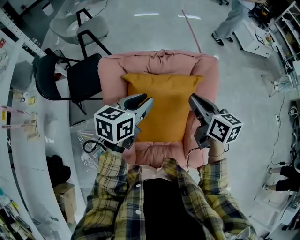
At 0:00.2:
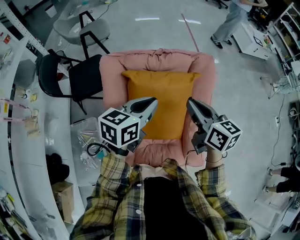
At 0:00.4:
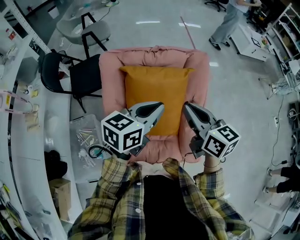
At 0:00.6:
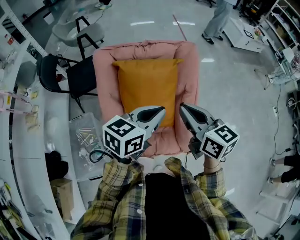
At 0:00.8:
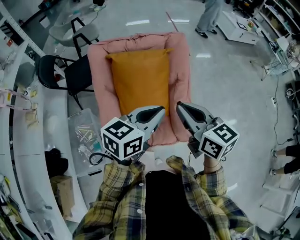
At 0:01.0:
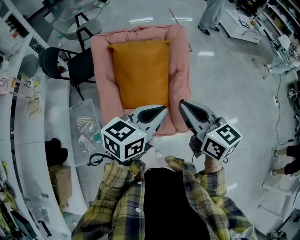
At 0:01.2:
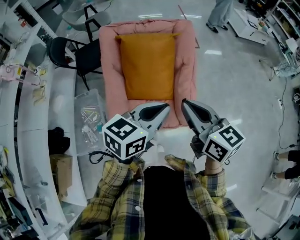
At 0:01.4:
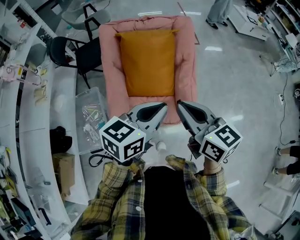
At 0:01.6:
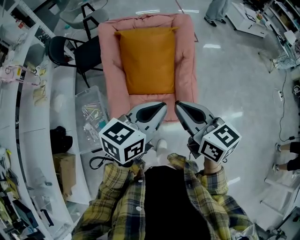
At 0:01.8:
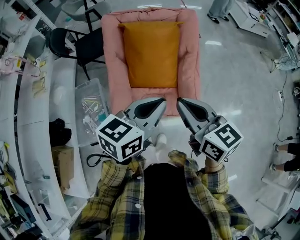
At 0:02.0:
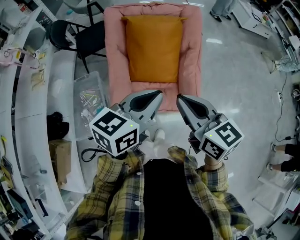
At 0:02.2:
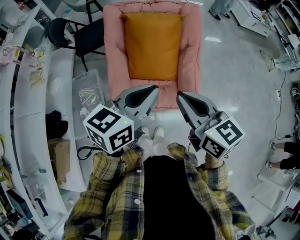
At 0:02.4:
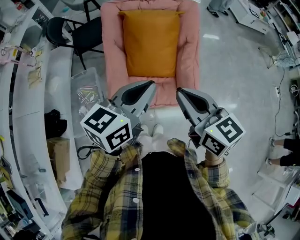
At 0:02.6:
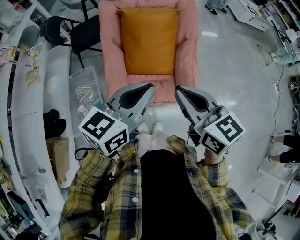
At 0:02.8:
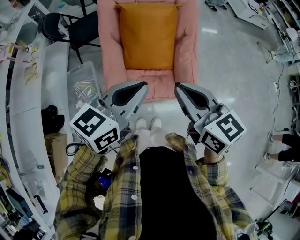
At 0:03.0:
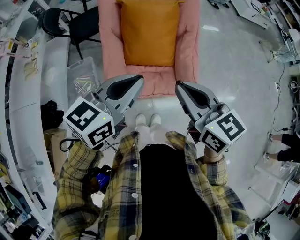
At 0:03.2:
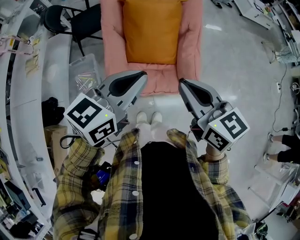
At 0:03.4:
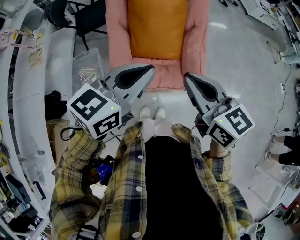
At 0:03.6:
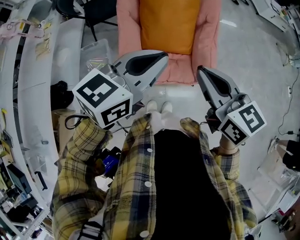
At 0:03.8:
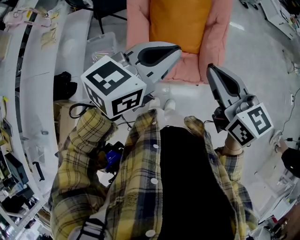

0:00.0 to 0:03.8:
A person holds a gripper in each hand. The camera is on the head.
0:00.0 to 0:01.2: The left gripper moves backward and to the right, some 40 cm, and closes, while the right gripper is displaced backward by roughly 35 cm.
0:01.2 to 0:02.6: The right gripper goes roughly 10 cm backward and to the left; the left gripper is displaced to the left and backward by approximately 10 cm.
0:02.6 to 0:03.8: The grippers move only a little.

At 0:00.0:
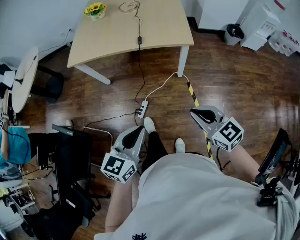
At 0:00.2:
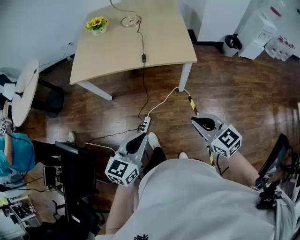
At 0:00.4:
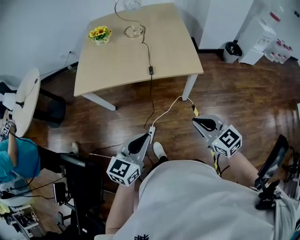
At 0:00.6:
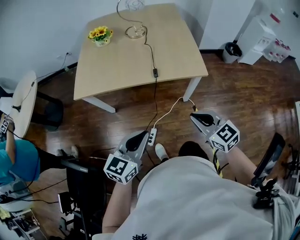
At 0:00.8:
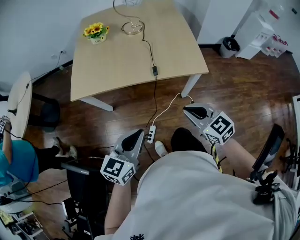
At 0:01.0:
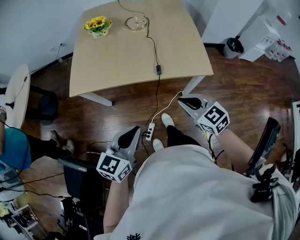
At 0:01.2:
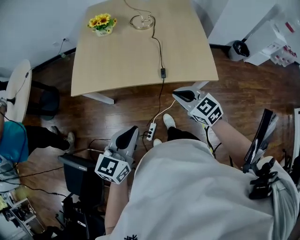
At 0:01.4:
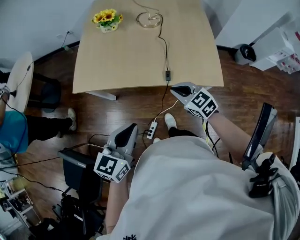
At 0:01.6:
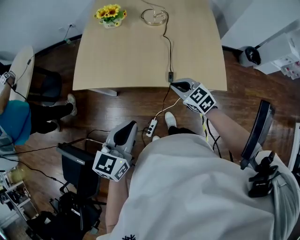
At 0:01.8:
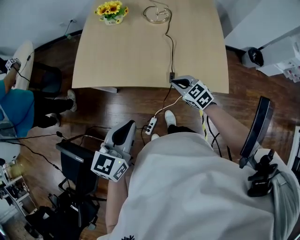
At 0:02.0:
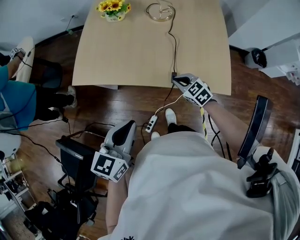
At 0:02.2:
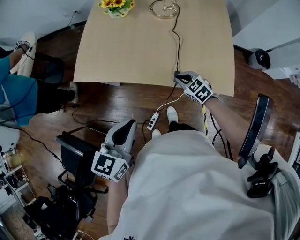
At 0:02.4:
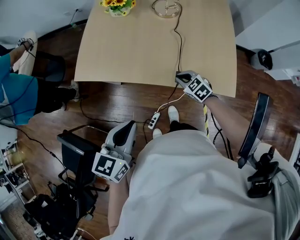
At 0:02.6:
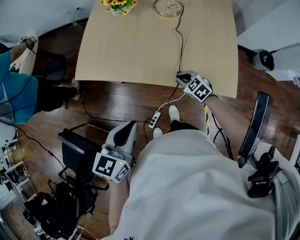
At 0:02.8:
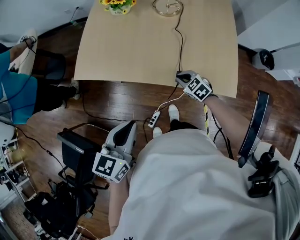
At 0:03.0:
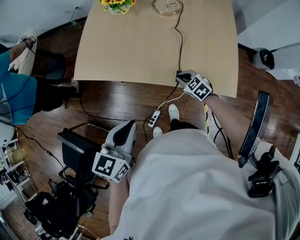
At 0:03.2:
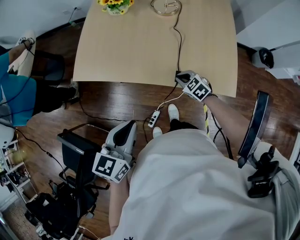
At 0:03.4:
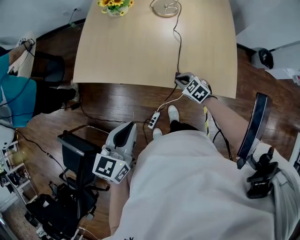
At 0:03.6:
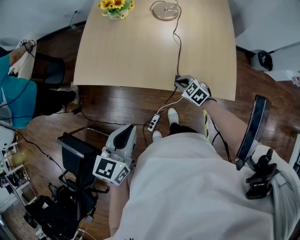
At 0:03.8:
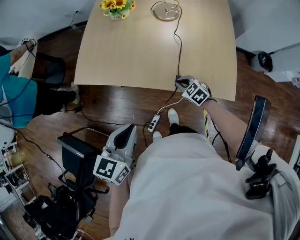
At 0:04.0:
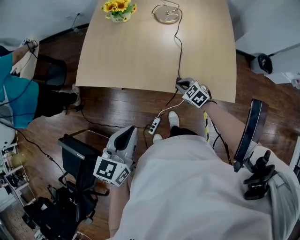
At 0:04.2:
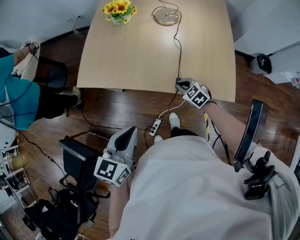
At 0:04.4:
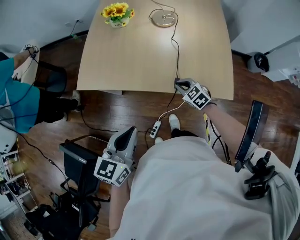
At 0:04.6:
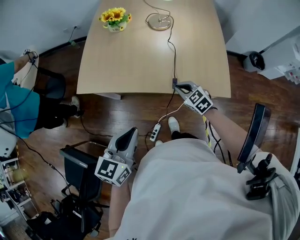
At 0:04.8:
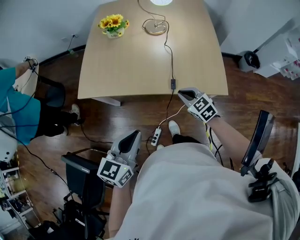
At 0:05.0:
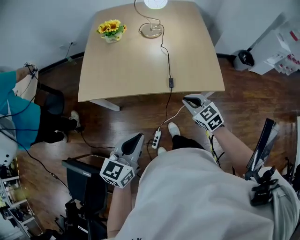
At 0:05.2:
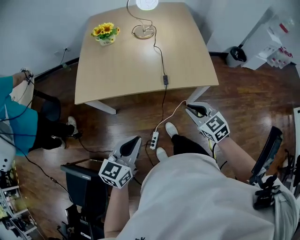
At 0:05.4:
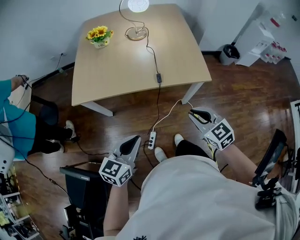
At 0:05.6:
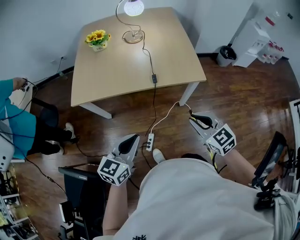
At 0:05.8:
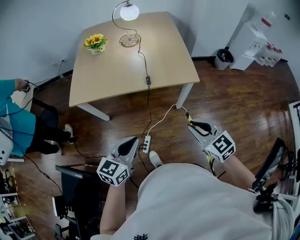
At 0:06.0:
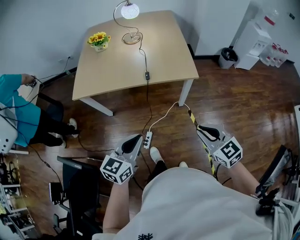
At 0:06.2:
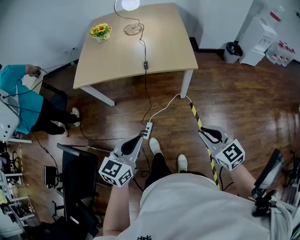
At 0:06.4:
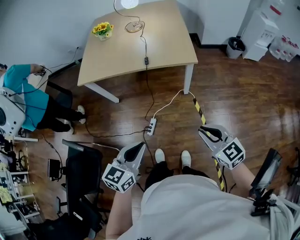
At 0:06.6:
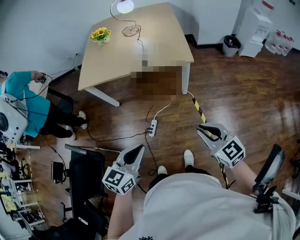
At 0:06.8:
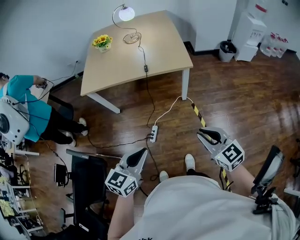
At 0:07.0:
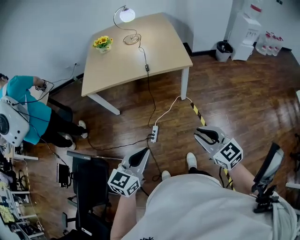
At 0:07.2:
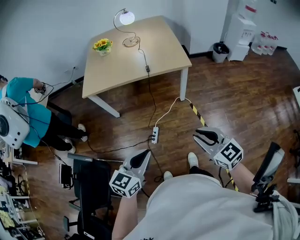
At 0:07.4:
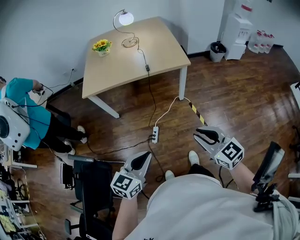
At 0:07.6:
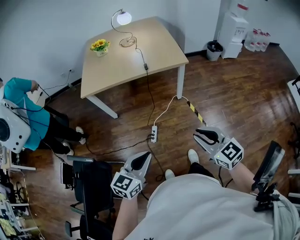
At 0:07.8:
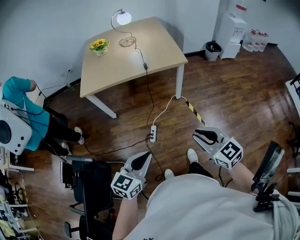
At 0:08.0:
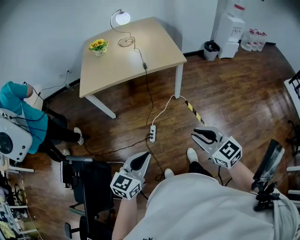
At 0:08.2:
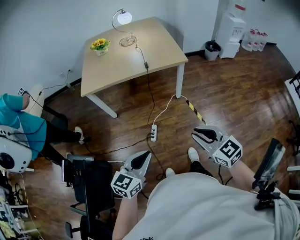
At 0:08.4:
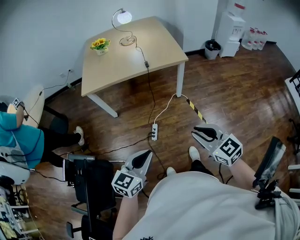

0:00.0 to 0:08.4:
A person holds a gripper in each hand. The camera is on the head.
0:00.0 to 0:01.4: The two grippers go roughly 40 cm forward and to the left.
0:01.4 to 0:02.8: The right gripper moves downward and forward, roughly 15 cm.
0:02.8 to 0:04.2: The grippers make only small movements.
0:04.2 to 0:05.6: The left gripper travels backward by approximately 15 cm, and swivels roughly 20 degrees. The right gripper is displaced backward and upward by approximately 40 cm, and rotates some 30 degrees.
0:05.6 to 0:07.0: Both grippers travel together backward, approximately 25 cm.
0:07.0 to 0:08.4: The grippers both shift backward and to the left by some 10 cm.

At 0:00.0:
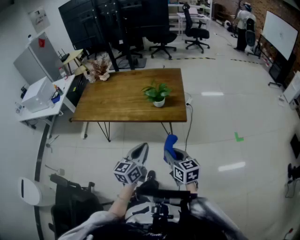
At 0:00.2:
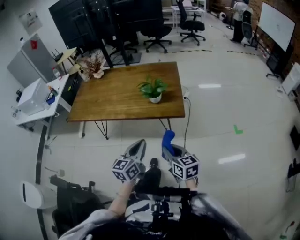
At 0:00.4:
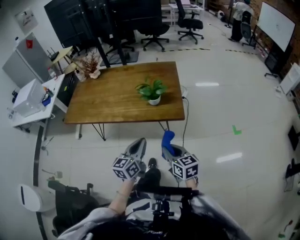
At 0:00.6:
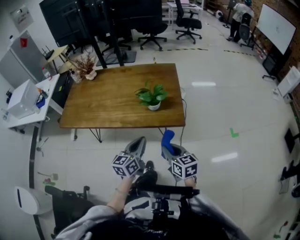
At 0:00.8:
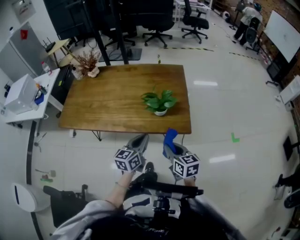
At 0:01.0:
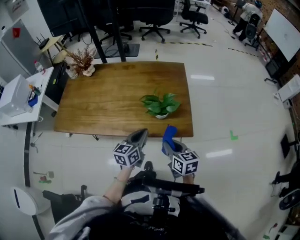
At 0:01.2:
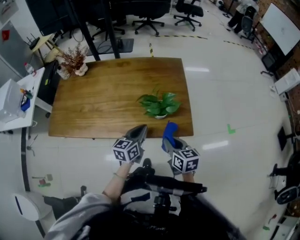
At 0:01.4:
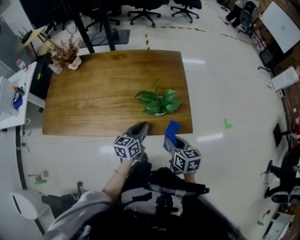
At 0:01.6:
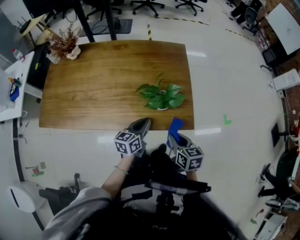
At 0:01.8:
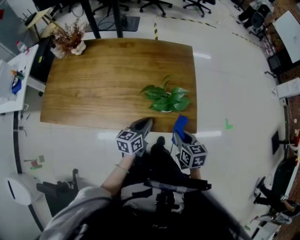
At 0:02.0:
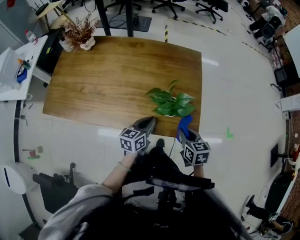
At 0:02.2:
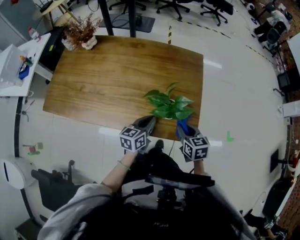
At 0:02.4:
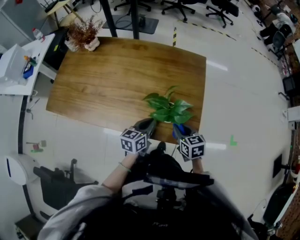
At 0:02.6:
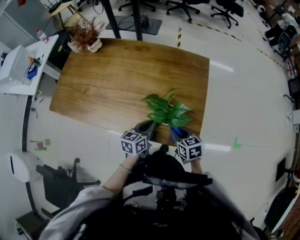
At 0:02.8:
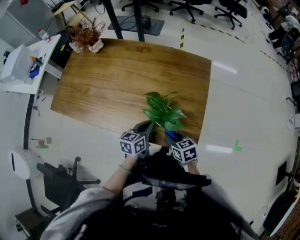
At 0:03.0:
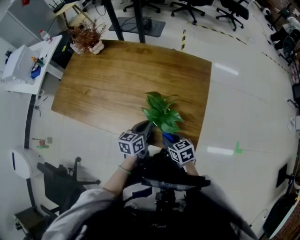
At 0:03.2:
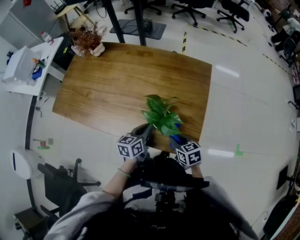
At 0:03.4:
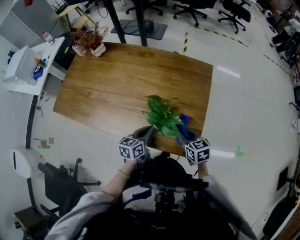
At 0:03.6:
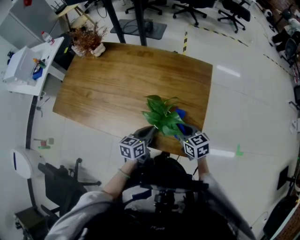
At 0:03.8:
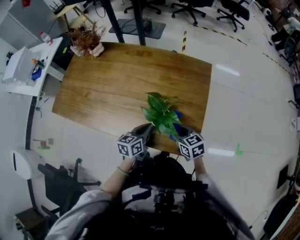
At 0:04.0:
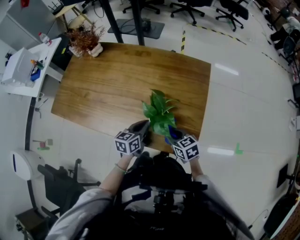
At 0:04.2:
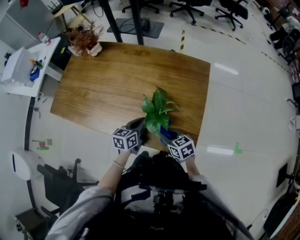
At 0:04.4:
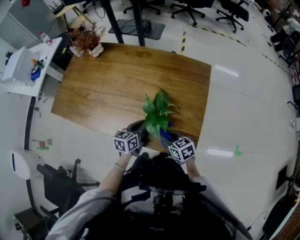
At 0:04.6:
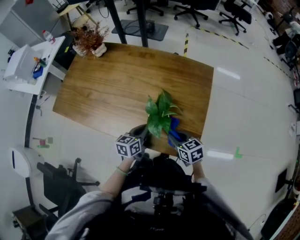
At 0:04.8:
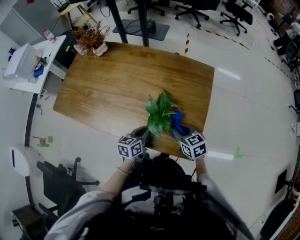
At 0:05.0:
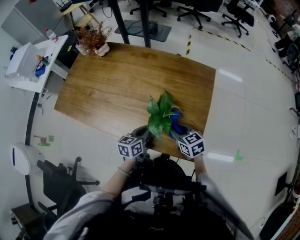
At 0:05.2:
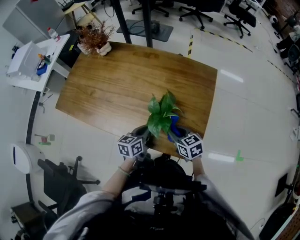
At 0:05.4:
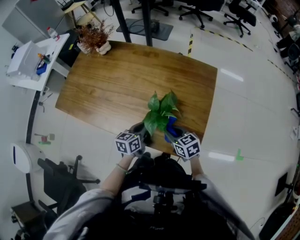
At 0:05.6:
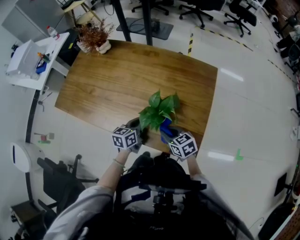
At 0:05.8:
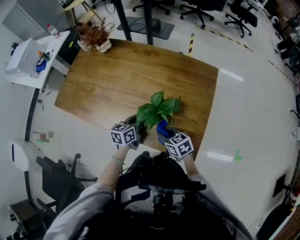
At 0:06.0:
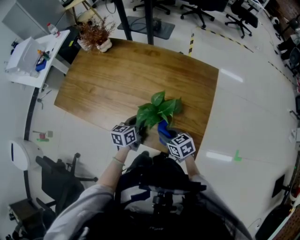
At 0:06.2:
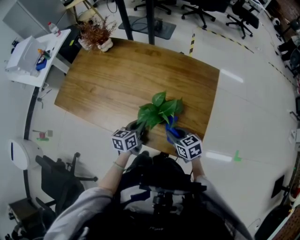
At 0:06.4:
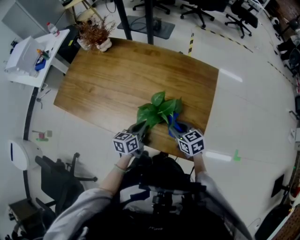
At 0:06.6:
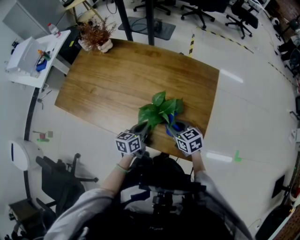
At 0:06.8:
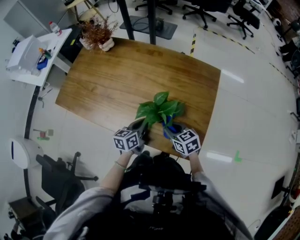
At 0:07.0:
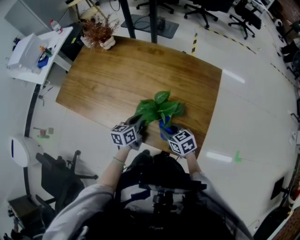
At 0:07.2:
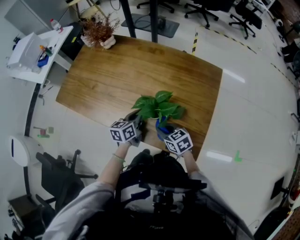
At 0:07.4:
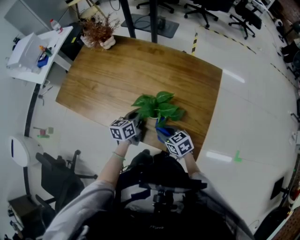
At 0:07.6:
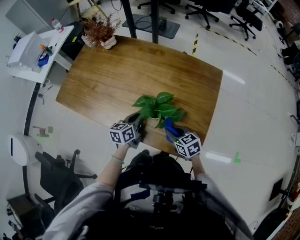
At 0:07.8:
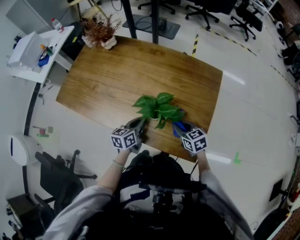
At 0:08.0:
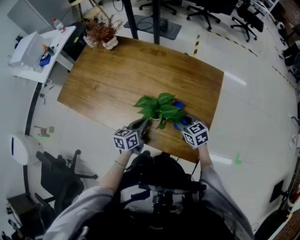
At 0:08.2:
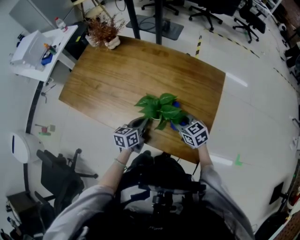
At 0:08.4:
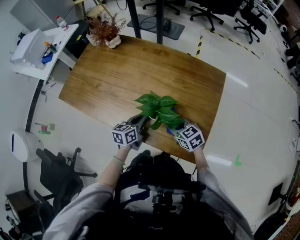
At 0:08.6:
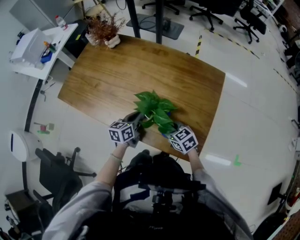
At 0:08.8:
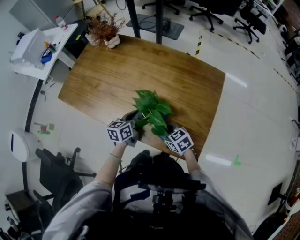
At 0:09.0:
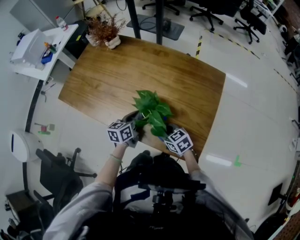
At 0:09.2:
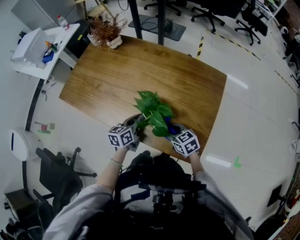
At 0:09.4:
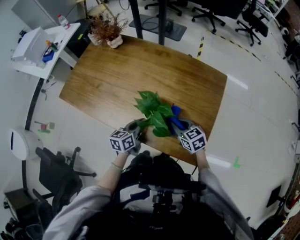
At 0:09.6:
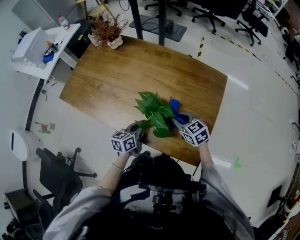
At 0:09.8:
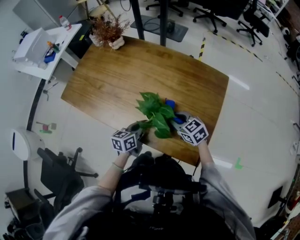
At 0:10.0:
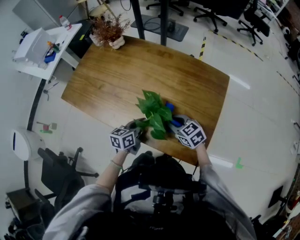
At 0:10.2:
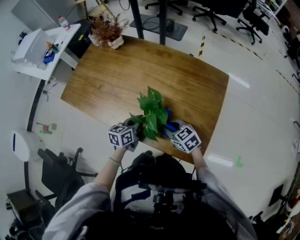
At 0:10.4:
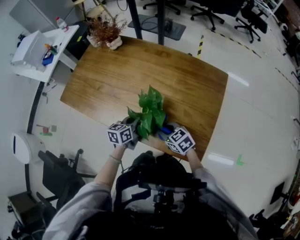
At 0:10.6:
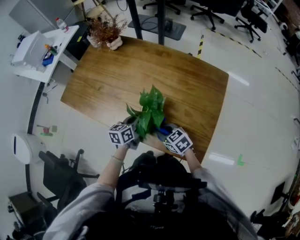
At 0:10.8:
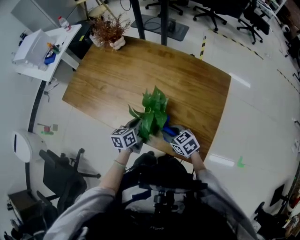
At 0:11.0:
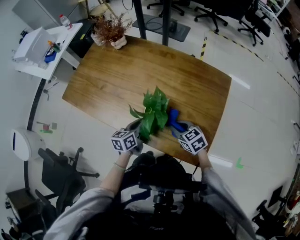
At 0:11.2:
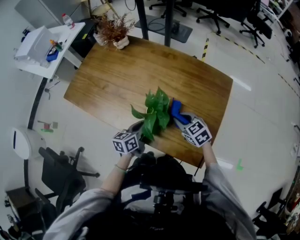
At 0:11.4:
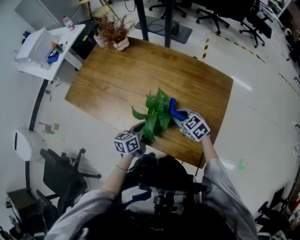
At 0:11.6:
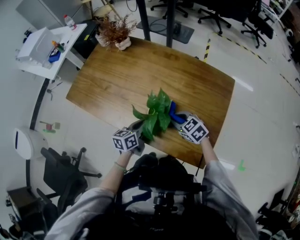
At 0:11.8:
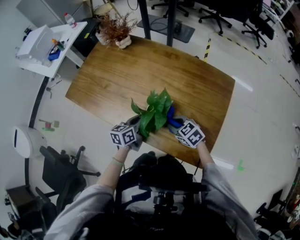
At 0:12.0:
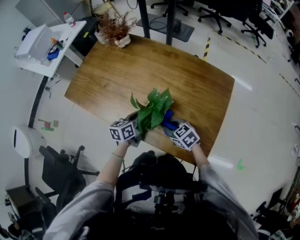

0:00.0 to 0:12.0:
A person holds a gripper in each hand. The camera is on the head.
0:00.0 to 0:01.6: The left gripper moves forward and downward, approximately 35 cm, and changes its angle by approximately 20 degrees. The right gripper shifts about 25 cm forward, and swivels about 20 degrees.
0:01.6 to 0:03.0: The right gripper ends up some 10 cm from where it was, and rotates approximately 30 degrees. The left gripper ends up about 5 cm from where it was.
0:03.0 to 0:04.4: The right gripper goes to the right and returns, about 5 cm each way.
0:04.4 to 0:06.0: The right gripper moves approximately 5 cm to the right and comes back.
0:06.0 to 0:07.6: The right gripper swings left and right, about 10 cm each way, with 2 reversals.
0:07.6 to 0:09.0: The right gripper goes some 5 cm to the left.
0:09.0 to 0:10.4: The right gripper travels to the right and back again, some 5 cm each way.
0:10.4 to 0:12.0: The right gripper reaches some 5 cm to the right, then returns.
